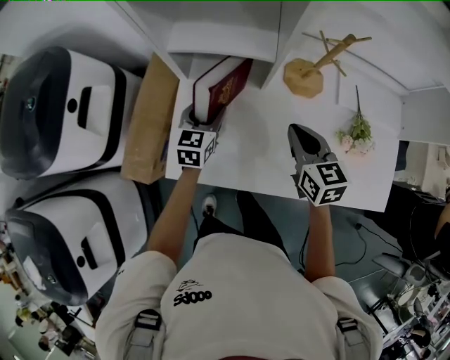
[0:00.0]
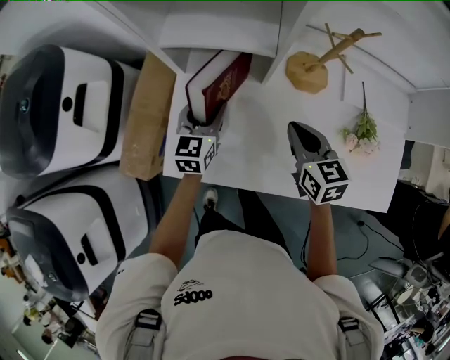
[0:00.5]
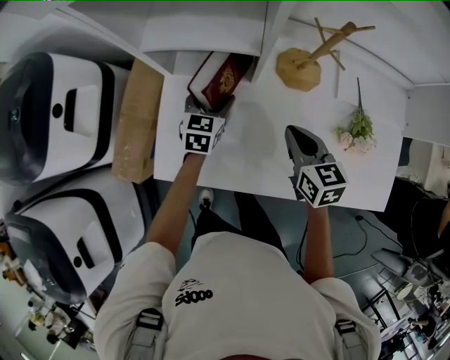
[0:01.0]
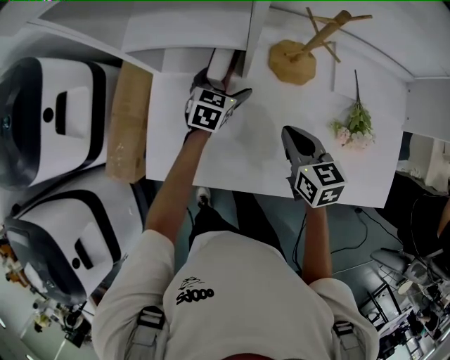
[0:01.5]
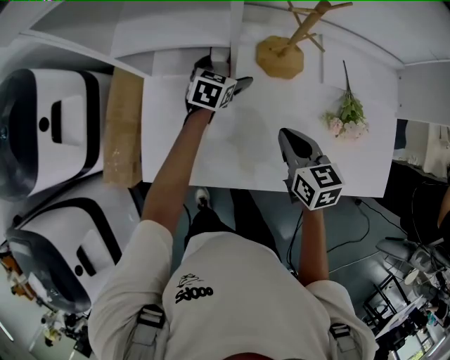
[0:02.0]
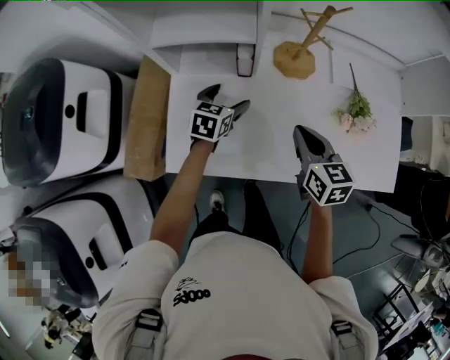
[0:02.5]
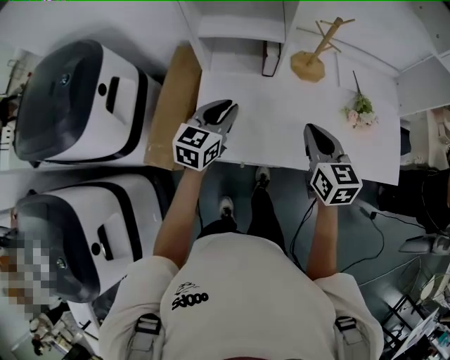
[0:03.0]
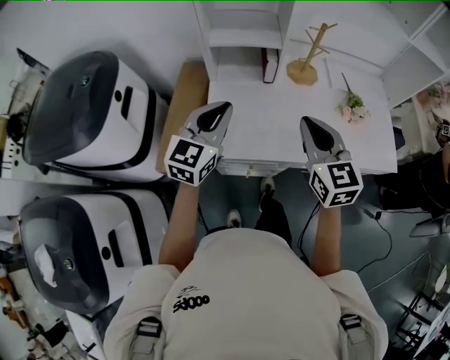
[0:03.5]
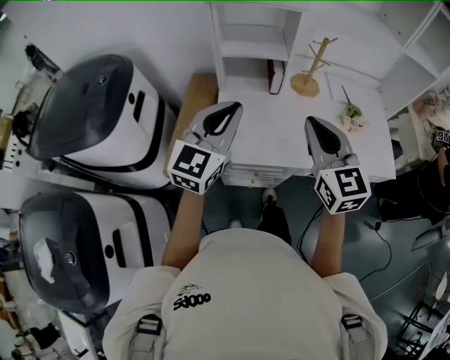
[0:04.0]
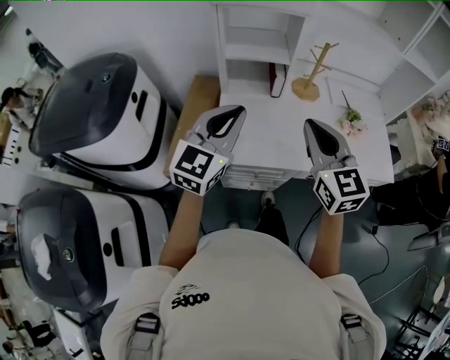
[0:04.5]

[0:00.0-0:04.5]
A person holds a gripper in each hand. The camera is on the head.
0:00.0 to 0:02.0: The right gripper travels to the right and downward by roughly 10 cm, while the left gripper travels to the right and forward by roughly 20 cm, changes its angle by about 20 degrees, and opens.
0:02.0 to 0:04.5: The left gripper goes about 50 cm backward, upward and to the left, points its fingers approximately 40 degrees further upward, and closes up; the right gripper is displaced upward, backward and to the left by about 35 cm, and rotates roughly 40 degrees.

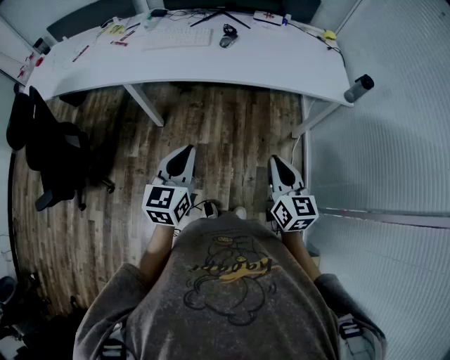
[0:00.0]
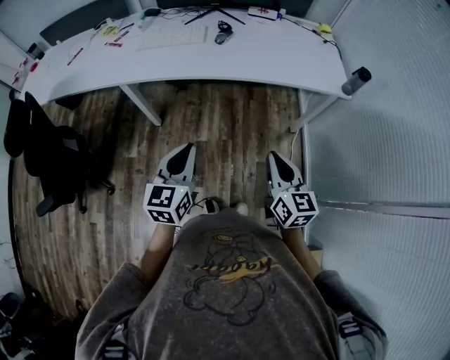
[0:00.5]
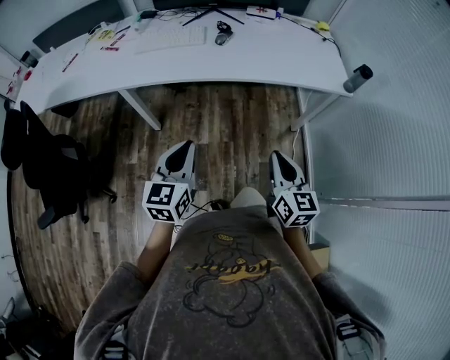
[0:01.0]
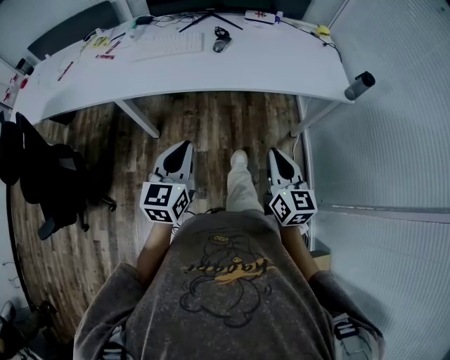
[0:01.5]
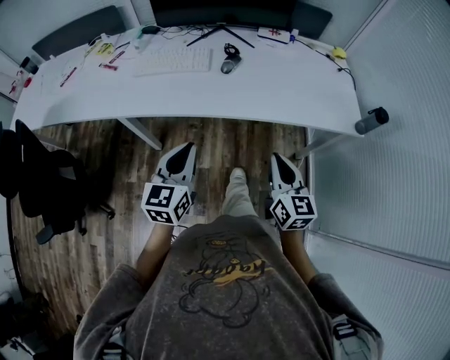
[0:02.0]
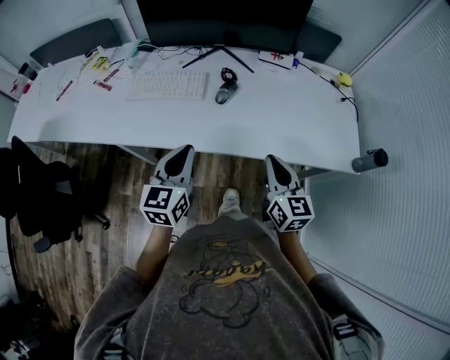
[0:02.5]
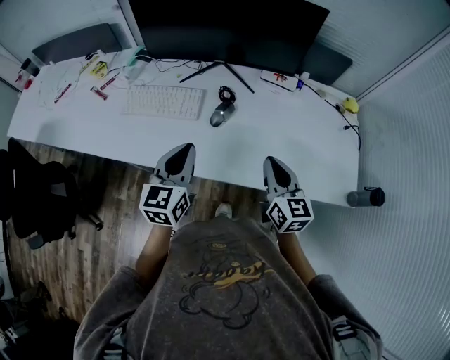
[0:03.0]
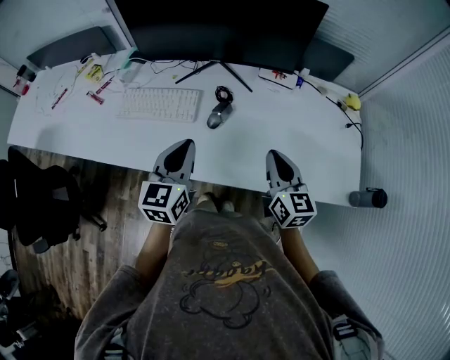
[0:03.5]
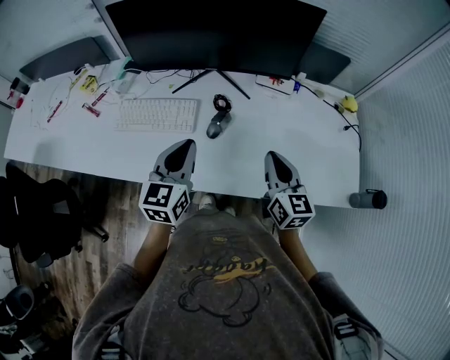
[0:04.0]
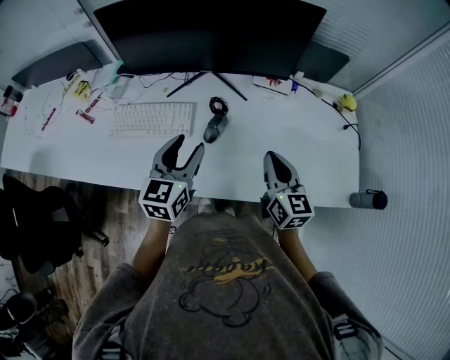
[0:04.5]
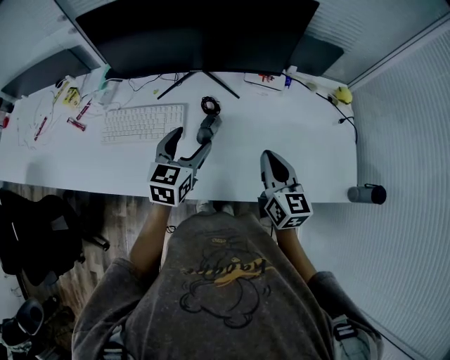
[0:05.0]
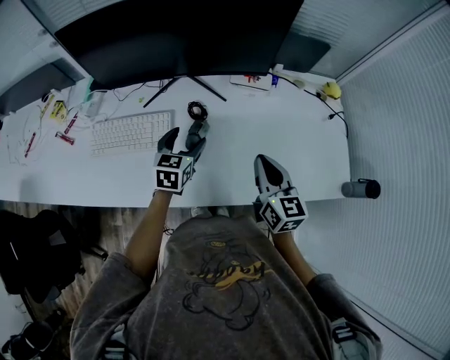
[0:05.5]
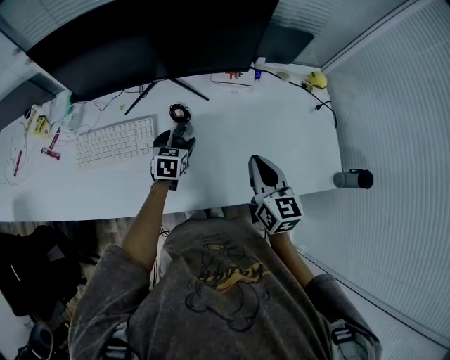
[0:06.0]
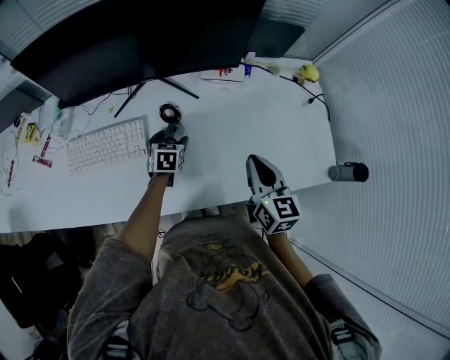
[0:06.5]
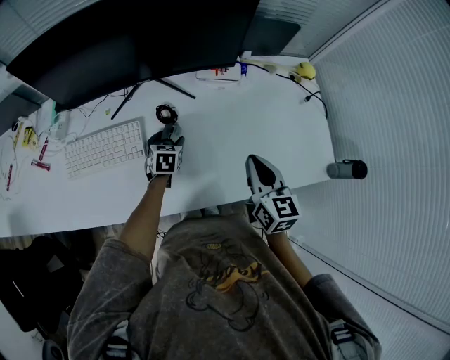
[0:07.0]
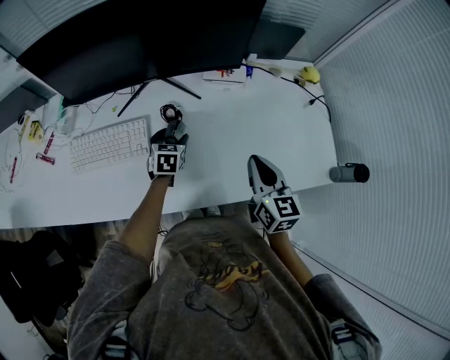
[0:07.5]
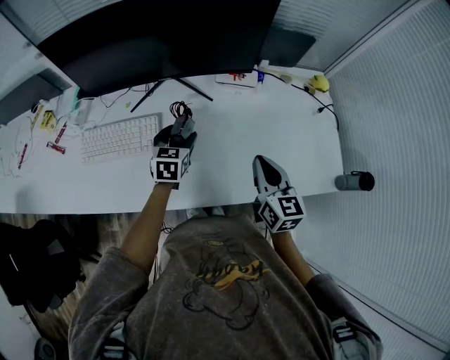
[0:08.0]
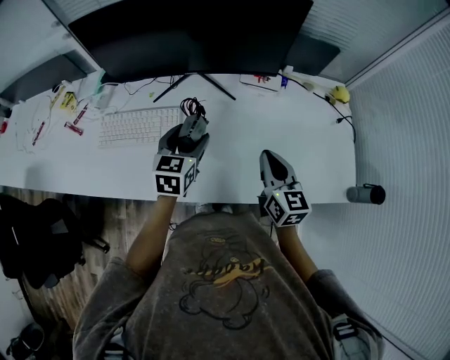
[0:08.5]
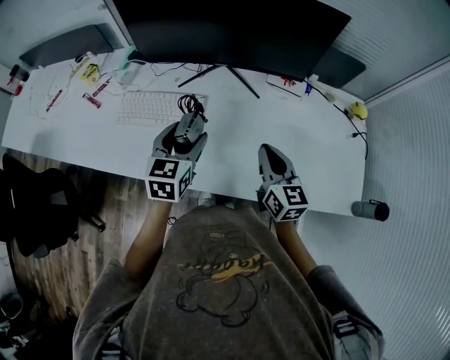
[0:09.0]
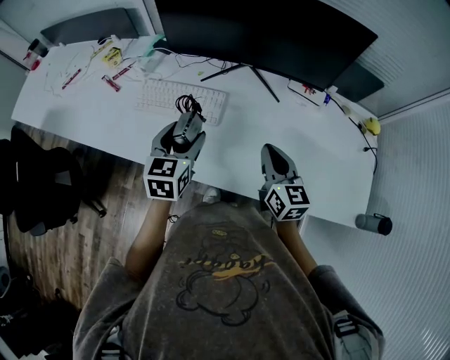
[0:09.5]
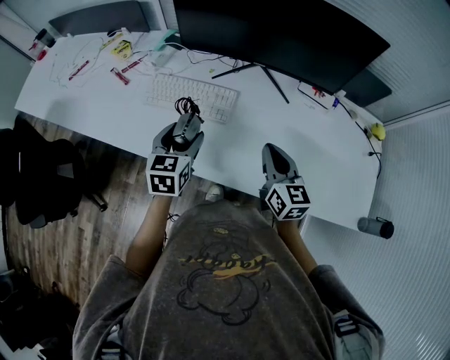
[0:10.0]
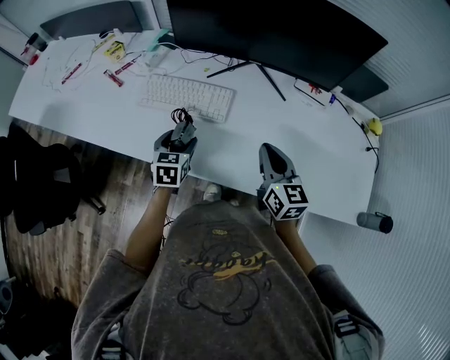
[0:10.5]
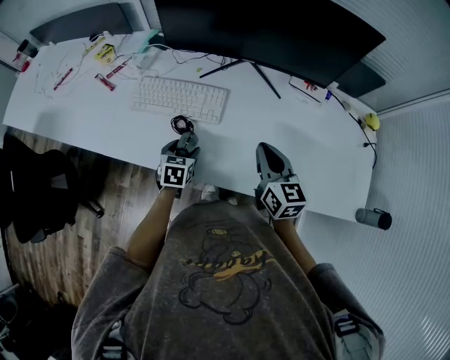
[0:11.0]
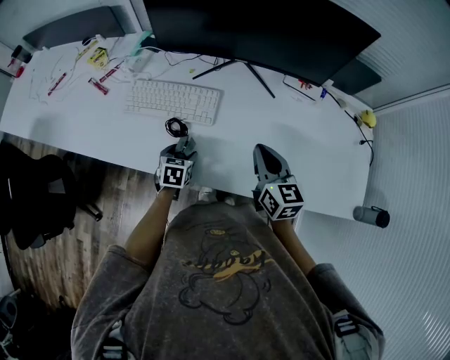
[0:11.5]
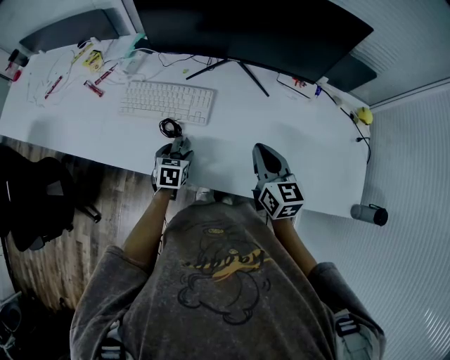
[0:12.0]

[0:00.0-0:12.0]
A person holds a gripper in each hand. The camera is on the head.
0:00.0 to 0:02.0: Both grippers travel together forward, roughly 20 cm.
0:02.0 to 0:04.0: Both grippers move forward, roughly 30 cm.
0:04.0 to 0:06.0: The left gripper moves downward and forward, about 25 cm, turns by some 30 degrees, and opens its fingers. The right gripper shifts by some 5 cm.
0:06.0 to 0:08.0: The left gripper is displaced upward by some 5 cm.
0:08.0 to 0:10.0: The right gripper travels to the left by about 15 cm, and changes its angle by about 20 degrees, while the left gripper shifts about 25 cm to the left, backward and upward, and turns by approximately 20 degrees.
0:10.0 to 0:12.0: The left gripper is displaced downward by some 20 cm, and swivels approximately 20 degrees.

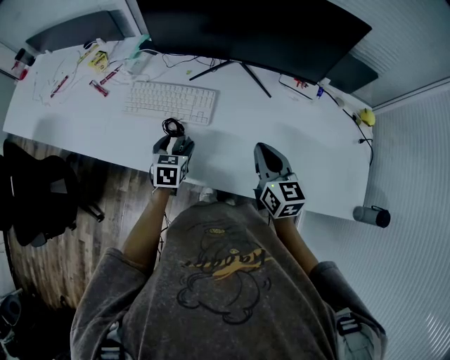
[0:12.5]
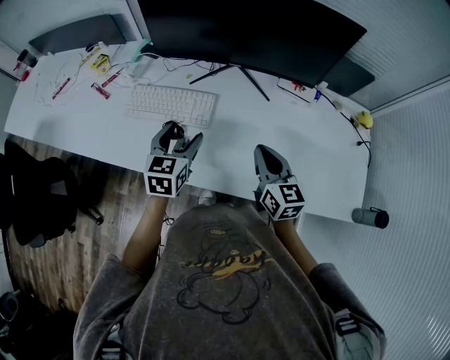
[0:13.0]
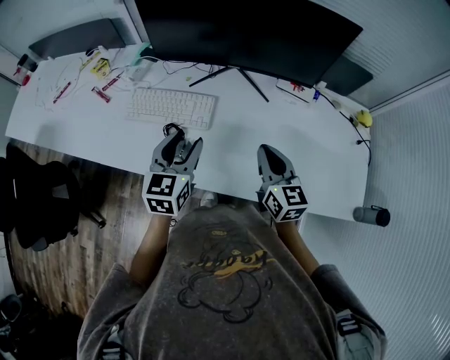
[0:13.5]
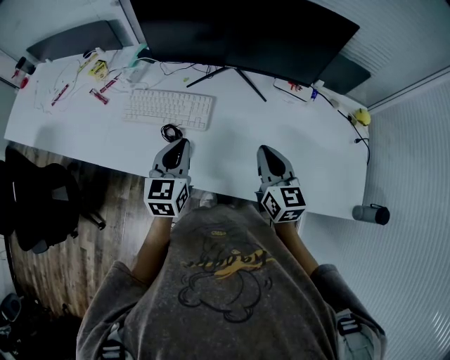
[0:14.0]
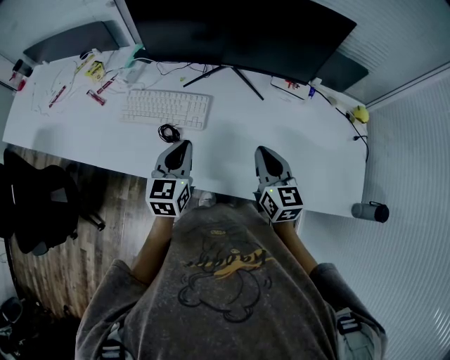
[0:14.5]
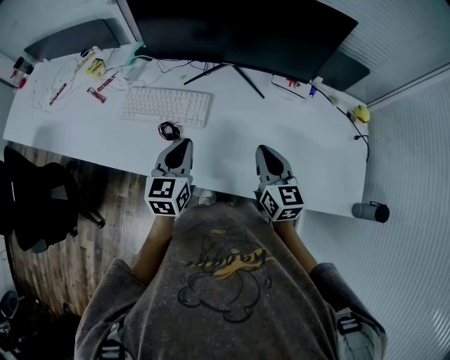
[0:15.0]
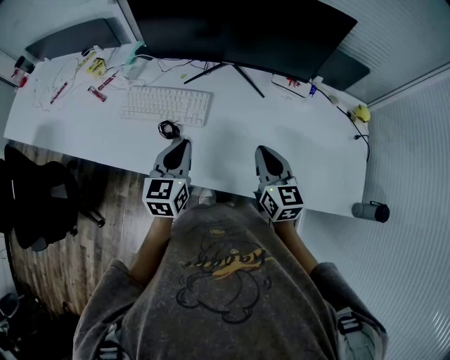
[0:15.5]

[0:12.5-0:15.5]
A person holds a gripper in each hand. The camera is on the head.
0:12.5 to 0:14.0: The left gripper goes approximately 15 cm upward, changes its angle by some 20 degrees, and closes its fingers.
0:14.0 to 0:15.5: There are only small adjustments of the grippers.

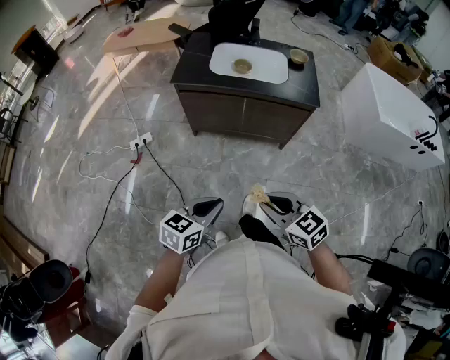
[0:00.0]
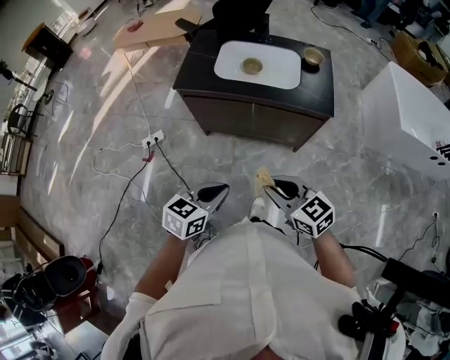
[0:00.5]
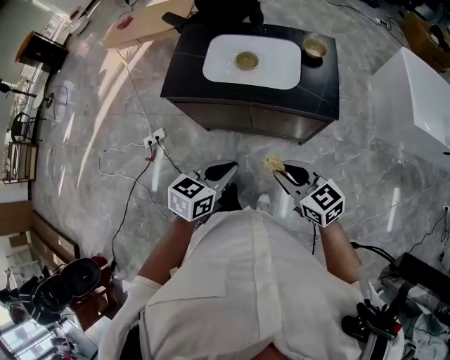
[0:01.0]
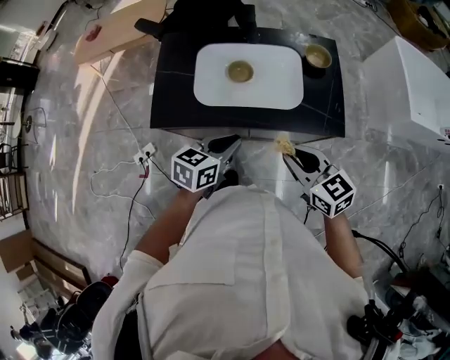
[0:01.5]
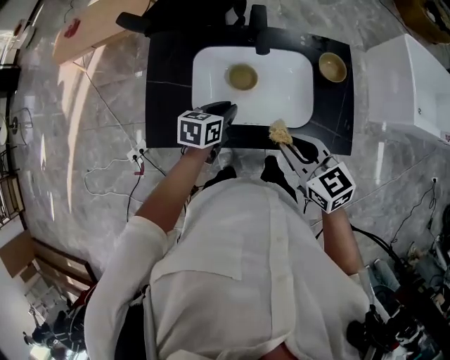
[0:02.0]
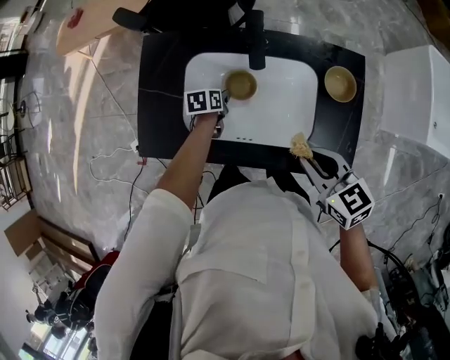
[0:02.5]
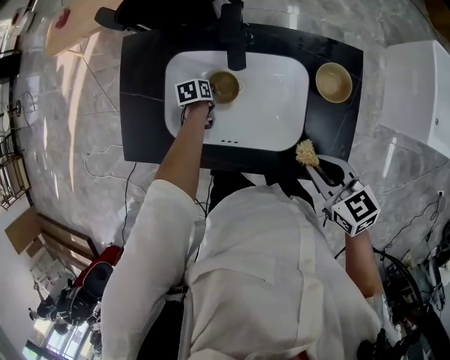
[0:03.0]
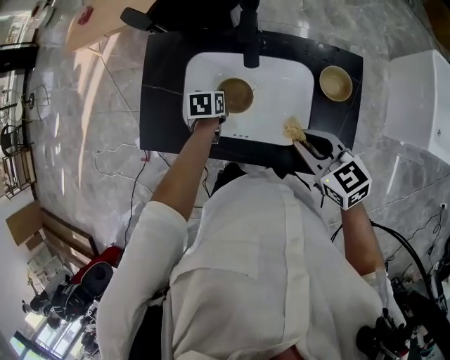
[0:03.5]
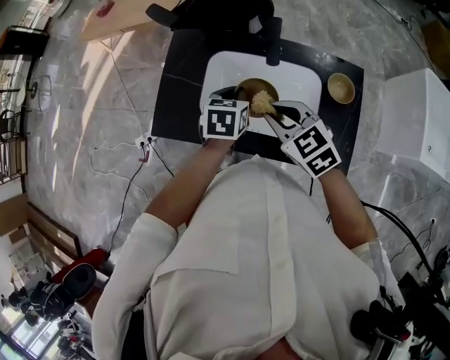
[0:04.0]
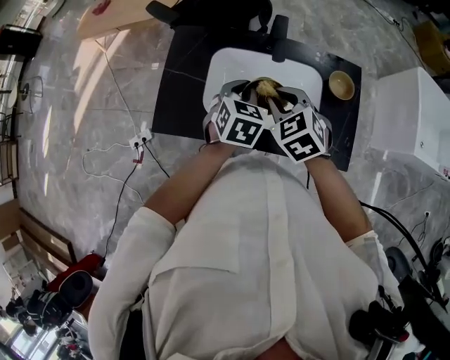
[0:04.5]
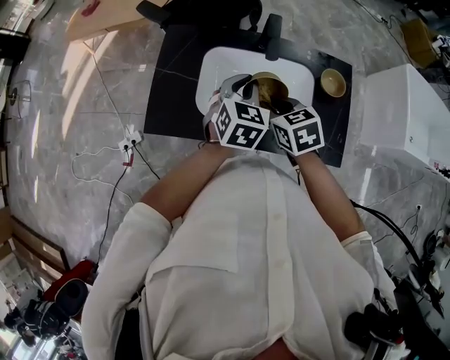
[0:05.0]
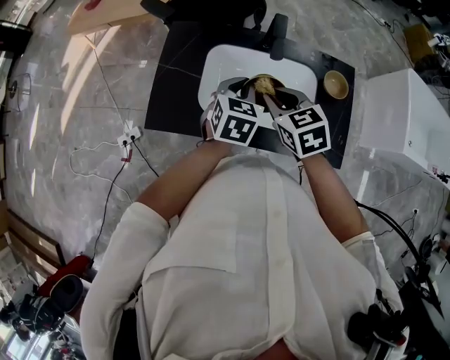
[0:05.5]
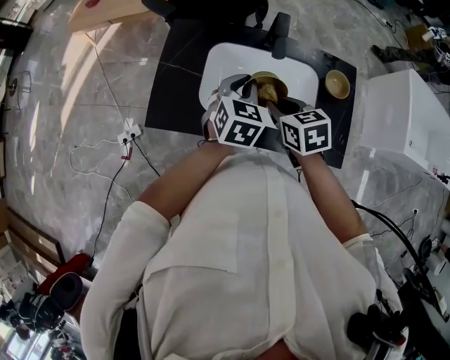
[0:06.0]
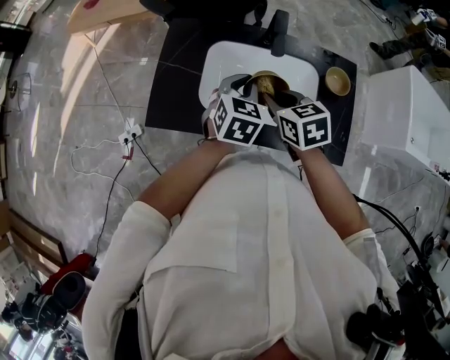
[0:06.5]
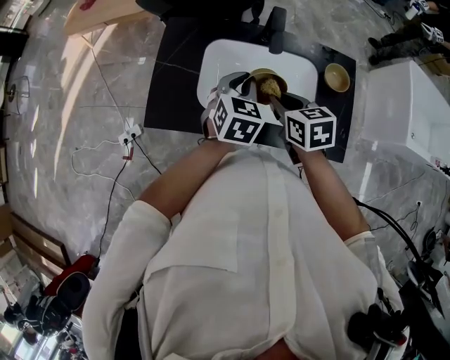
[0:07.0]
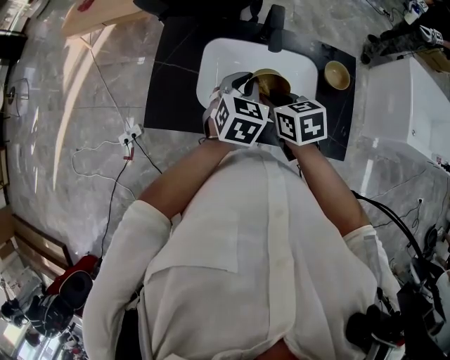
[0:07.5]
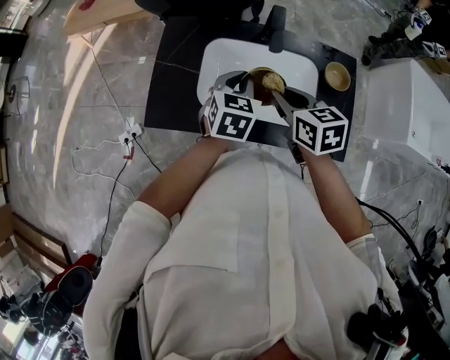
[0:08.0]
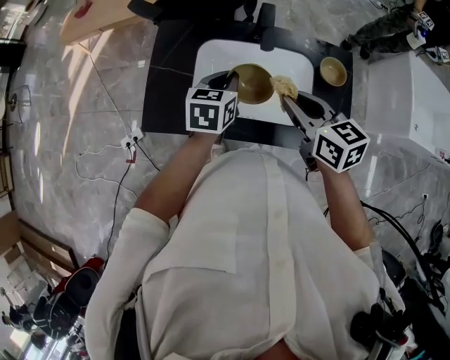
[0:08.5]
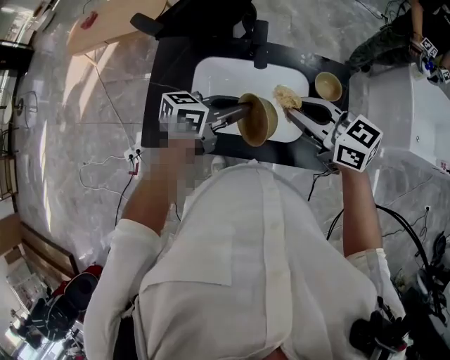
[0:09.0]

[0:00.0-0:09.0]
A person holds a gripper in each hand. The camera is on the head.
0:00.0 to 0:02.0: The two grippers travel together, forward, approximately 70 cm.
0:02.0 to 0:04.5: The left gripper moves some 20 cm downward and comes back, and rotates approximately 40 degrees. Meanwhile the right gripper shifts some 10 cm forward, goes to the right and returns, roughly 15 cm each way, and changes its angle by some 40 degrees.
0:04.5 to 0:07.0: The right gripper changes its angle by about 40 degrees.
0:07.0 to 0:09.0: The right gripper travels upward by roughly 10 cm, and changes its angle by some 30 degrees. The left gripper moves some 5 cm, and rotates some 60 degrees.
